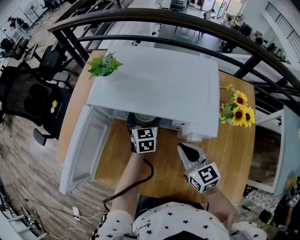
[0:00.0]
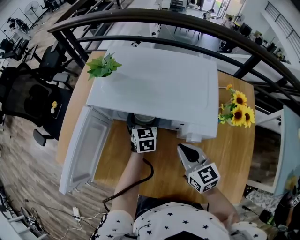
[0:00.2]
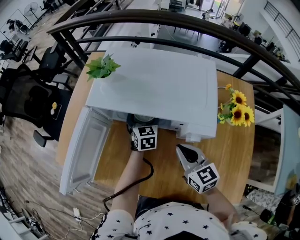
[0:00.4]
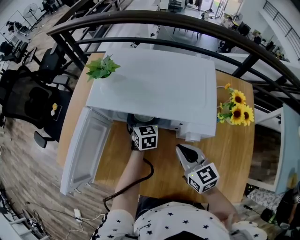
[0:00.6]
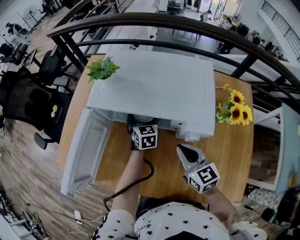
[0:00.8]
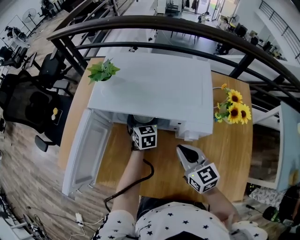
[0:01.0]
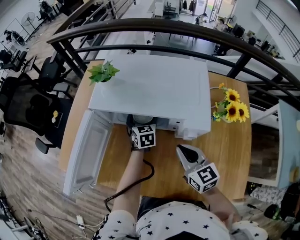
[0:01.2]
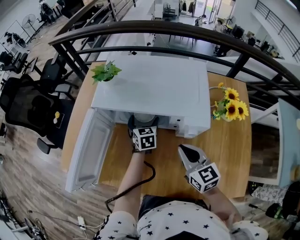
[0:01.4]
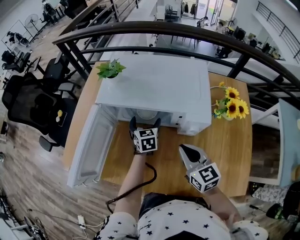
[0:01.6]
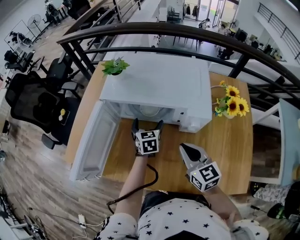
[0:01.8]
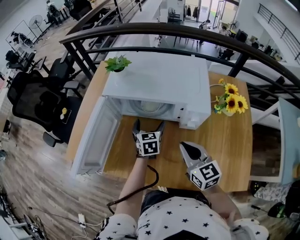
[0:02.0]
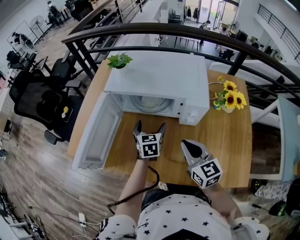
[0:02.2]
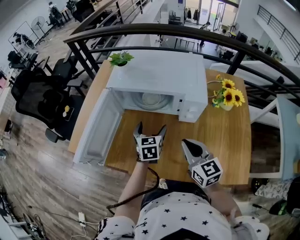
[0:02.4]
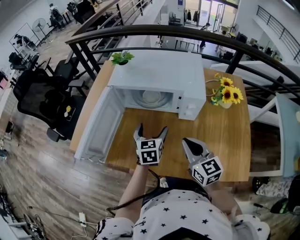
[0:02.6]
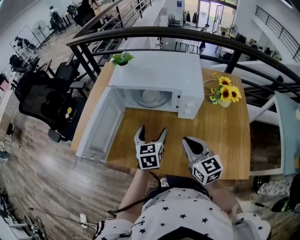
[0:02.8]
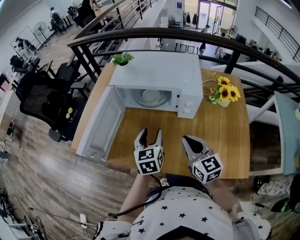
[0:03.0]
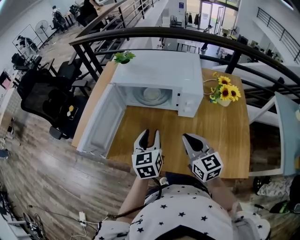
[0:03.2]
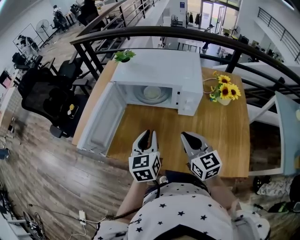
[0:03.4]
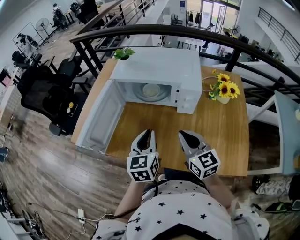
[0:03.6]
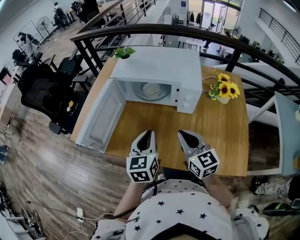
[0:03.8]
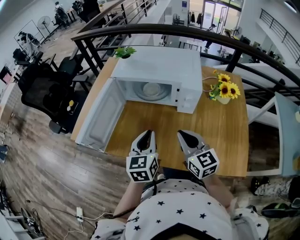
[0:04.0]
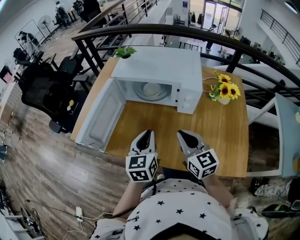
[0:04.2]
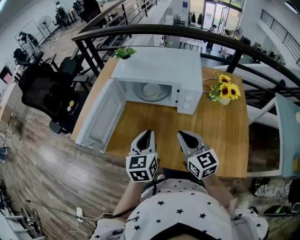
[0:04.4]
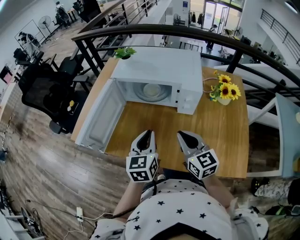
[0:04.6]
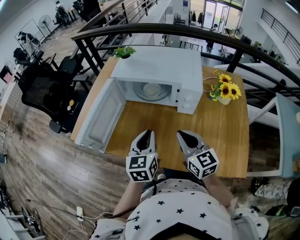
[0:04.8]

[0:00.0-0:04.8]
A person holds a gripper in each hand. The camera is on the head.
0:00.0 to 0:01.6: The right gripper shifts by about 5 cm.
0:01.6 to 0:03.2: The left gripper is displaced backward and upward by roughly 25 cm, and closes up. Meanwhile the right gripper travels backward by some 10 cm.
0:03.2 to 0:04.8: The grippers move only a little.

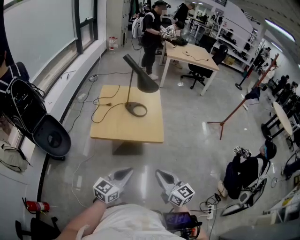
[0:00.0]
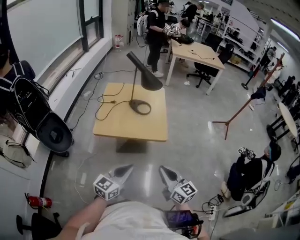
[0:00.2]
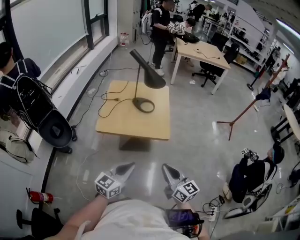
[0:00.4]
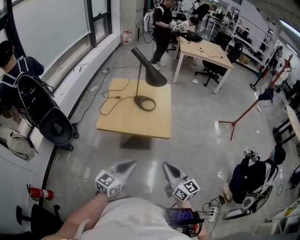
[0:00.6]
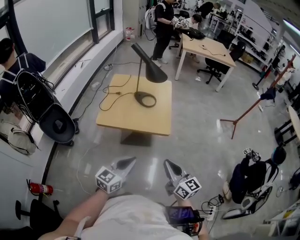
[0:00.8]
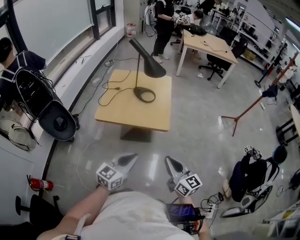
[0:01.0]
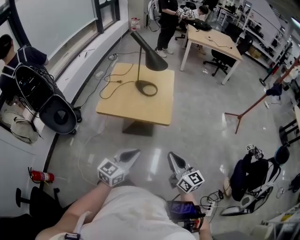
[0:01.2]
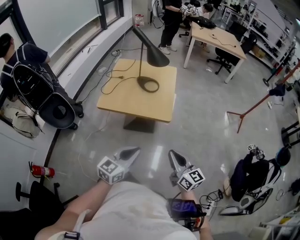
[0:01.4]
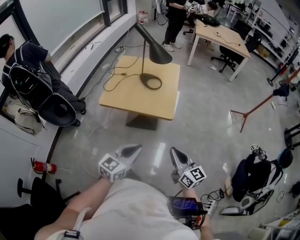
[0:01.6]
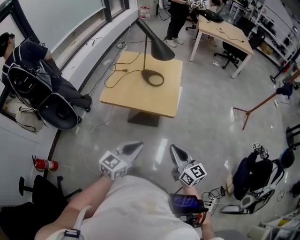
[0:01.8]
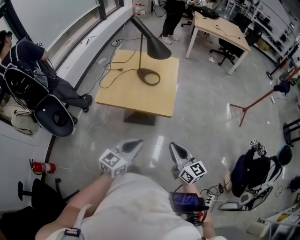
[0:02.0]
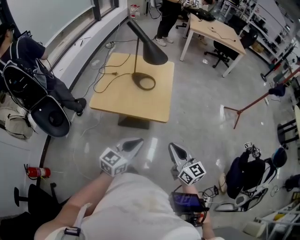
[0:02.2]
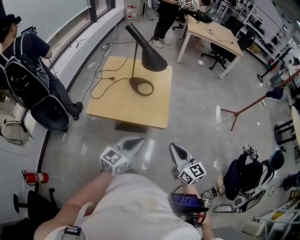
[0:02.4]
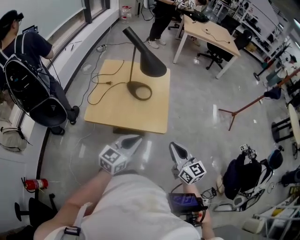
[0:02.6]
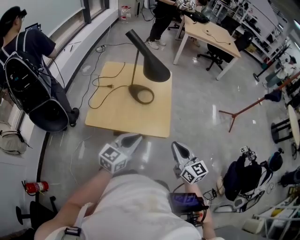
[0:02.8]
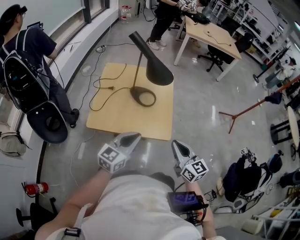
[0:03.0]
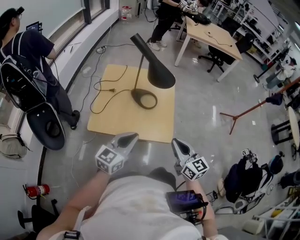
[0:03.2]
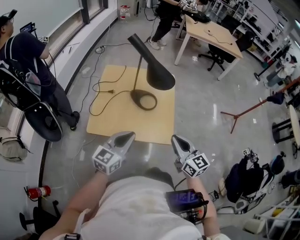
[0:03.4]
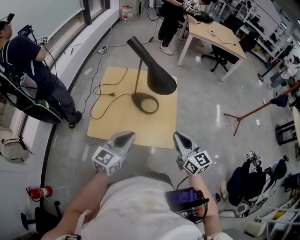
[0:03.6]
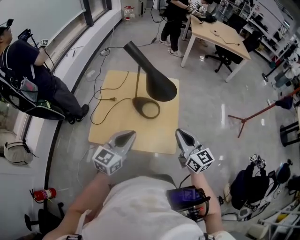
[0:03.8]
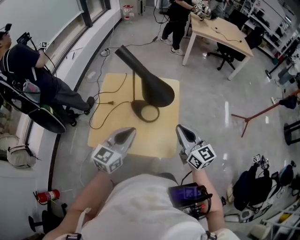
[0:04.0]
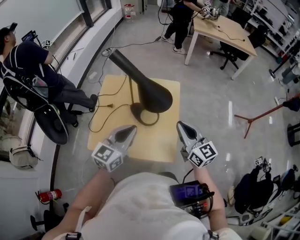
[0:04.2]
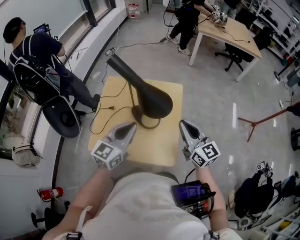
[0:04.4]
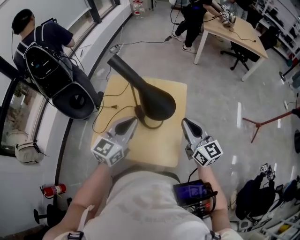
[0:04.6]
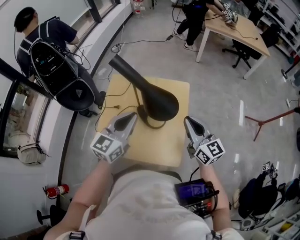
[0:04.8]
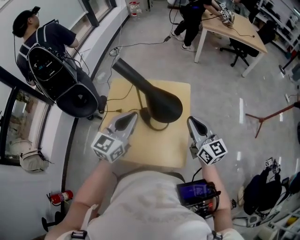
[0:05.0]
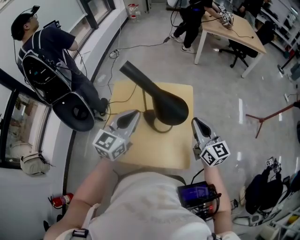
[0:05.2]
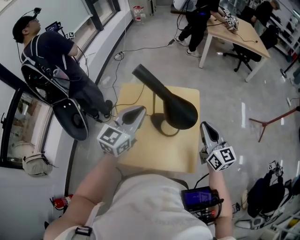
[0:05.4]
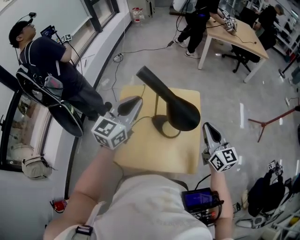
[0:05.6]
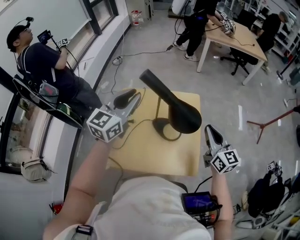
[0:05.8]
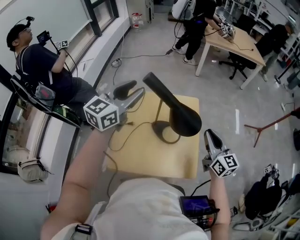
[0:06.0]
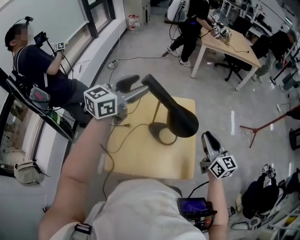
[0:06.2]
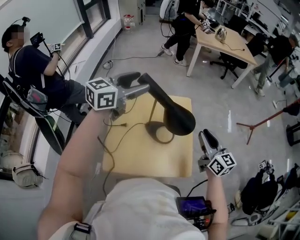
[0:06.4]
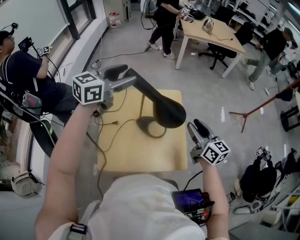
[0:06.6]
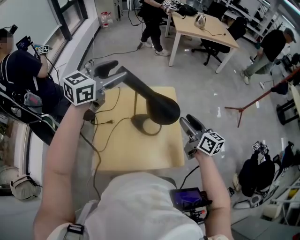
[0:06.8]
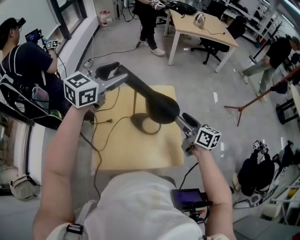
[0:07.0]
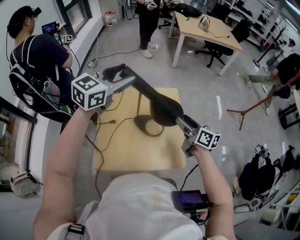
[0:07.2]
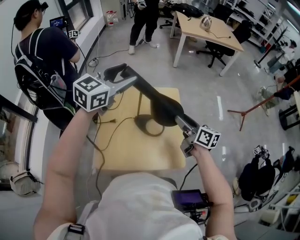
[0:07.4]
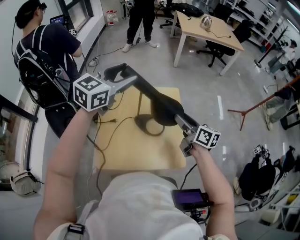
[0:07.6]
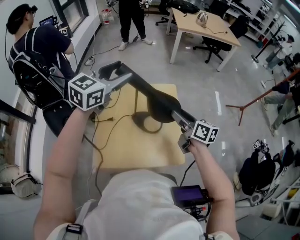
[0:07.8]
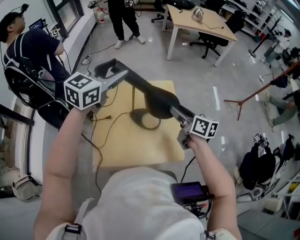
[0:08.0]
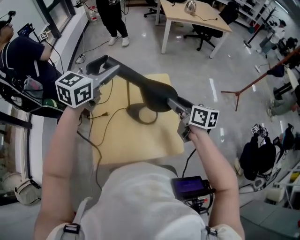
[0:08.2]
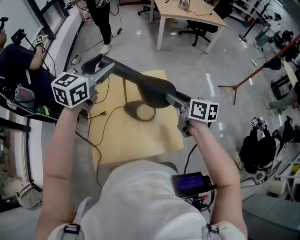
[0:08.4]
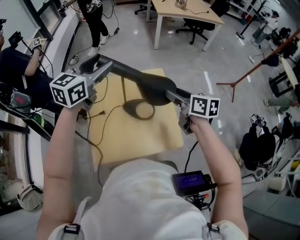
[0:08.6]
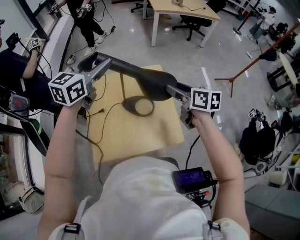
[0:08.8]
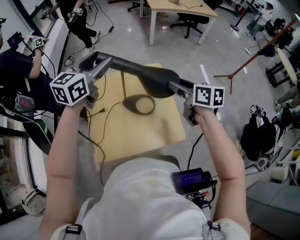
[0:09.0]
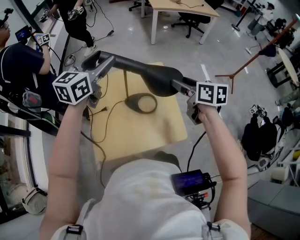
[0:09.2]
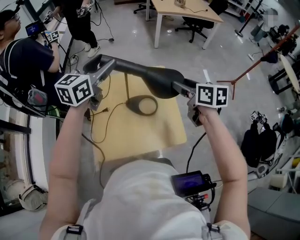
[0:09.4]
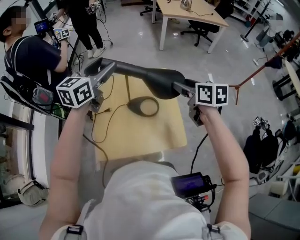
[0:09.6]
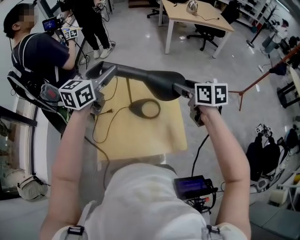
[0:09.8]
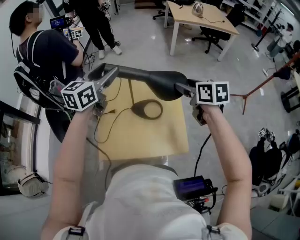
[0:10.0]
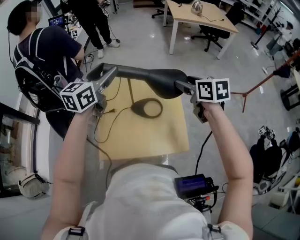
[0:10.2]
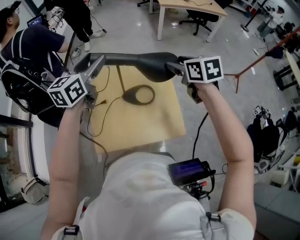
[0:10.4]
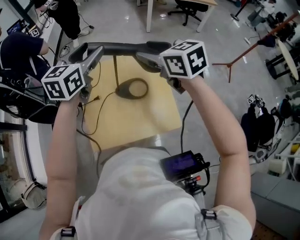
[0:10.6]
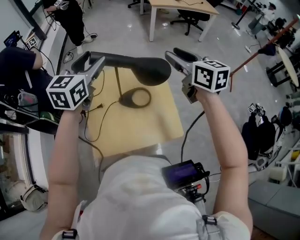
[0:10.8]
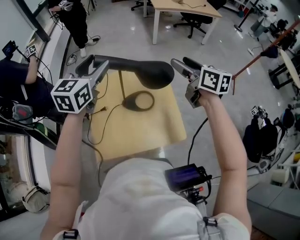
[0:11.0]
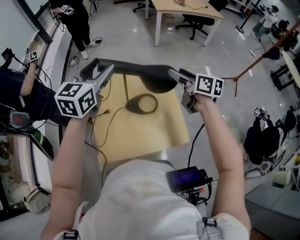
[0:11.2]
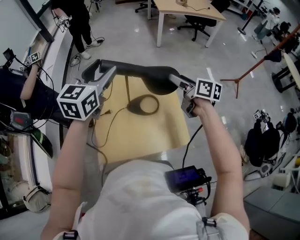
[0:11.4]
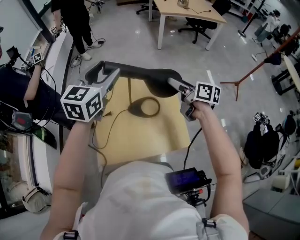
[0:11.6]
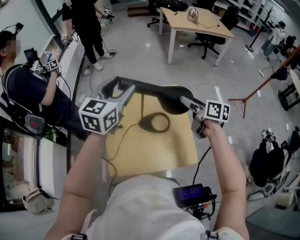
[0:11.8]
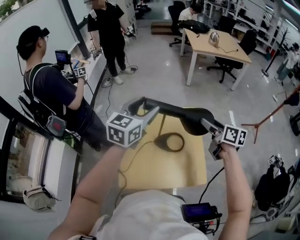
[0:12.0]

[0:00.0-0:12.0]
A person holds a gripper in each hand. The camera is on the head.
0:00.0 to 0:01.6: Both grippers move to the right, roughly 10 cm.
0:01.6 to 0:03.0: Both grippers move forward, some 20 cm.
0:03.0 to 0:04.4: The two grippers go roughly 25 cm forward.
0:04.4 to 0:06.0: The left gripper is displaced forward, upward and to the left by about 25 cm, and opens up.
0:06.0 to 0:07.6: The left gripper ends up roughly 5 cm from where it was, while the right gripper ends up approximately 5 cm from where it was, turns by roughly 30 degrees, and opens.
0:07.6 to 0:09.0: The grippers stay close to where they were, moving slightly.
0:09.0 to 0:10.4: The right gripper is displaced upward by approximately 5 cm.
0:10.4 to 0:12.0: The right gripper travels downward by some 5 cm, and turns by approximately 30 degrees.

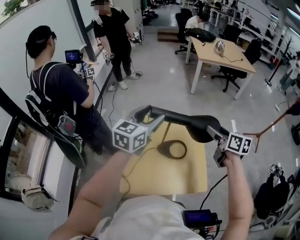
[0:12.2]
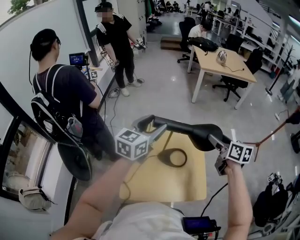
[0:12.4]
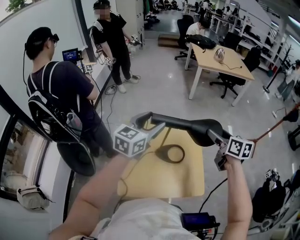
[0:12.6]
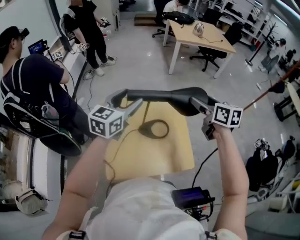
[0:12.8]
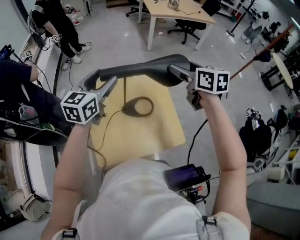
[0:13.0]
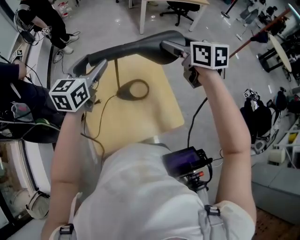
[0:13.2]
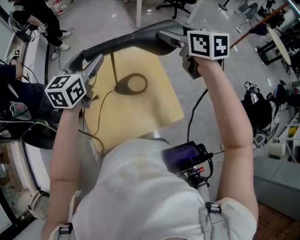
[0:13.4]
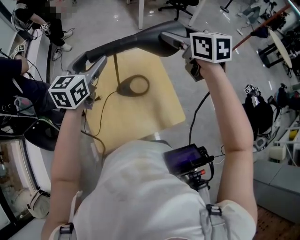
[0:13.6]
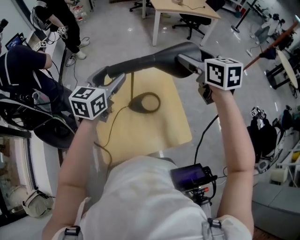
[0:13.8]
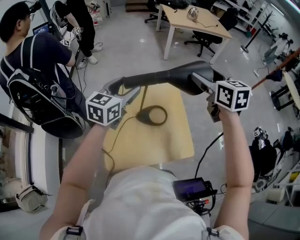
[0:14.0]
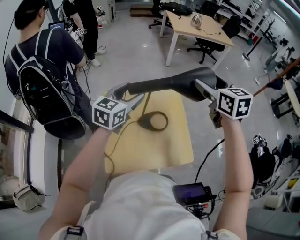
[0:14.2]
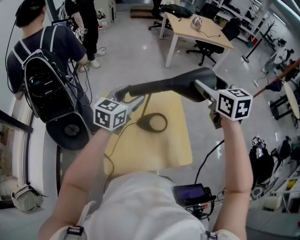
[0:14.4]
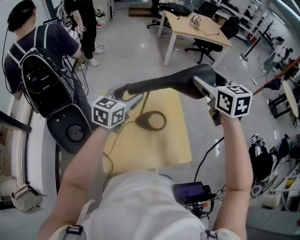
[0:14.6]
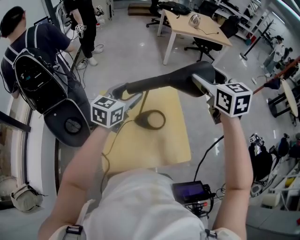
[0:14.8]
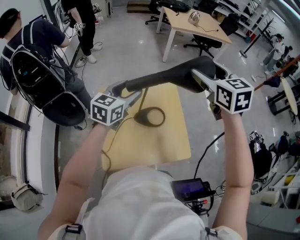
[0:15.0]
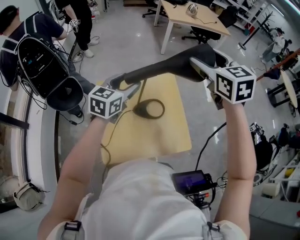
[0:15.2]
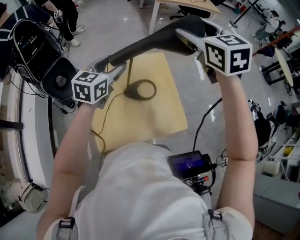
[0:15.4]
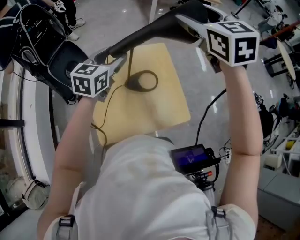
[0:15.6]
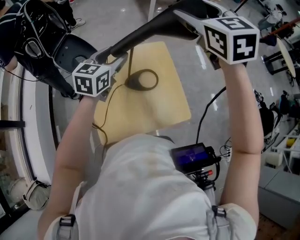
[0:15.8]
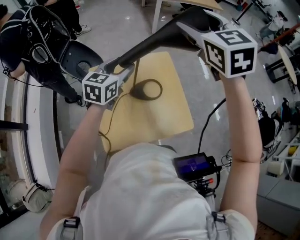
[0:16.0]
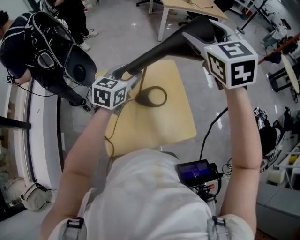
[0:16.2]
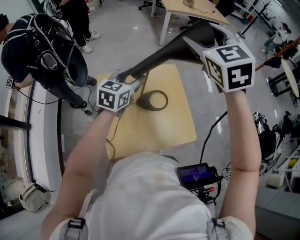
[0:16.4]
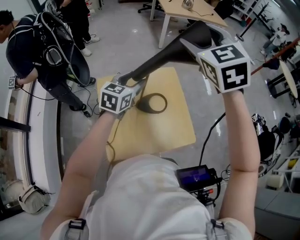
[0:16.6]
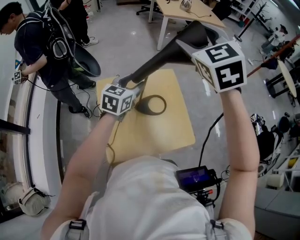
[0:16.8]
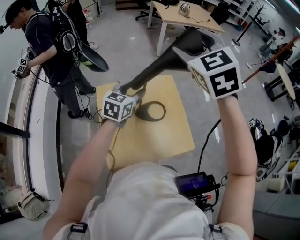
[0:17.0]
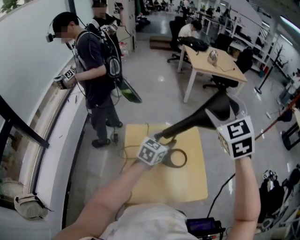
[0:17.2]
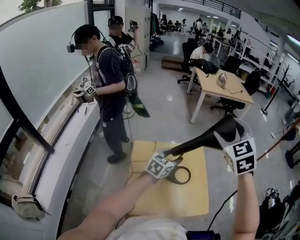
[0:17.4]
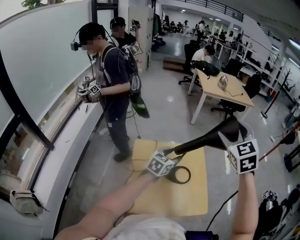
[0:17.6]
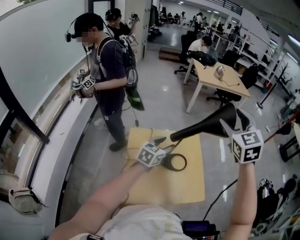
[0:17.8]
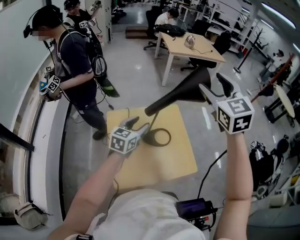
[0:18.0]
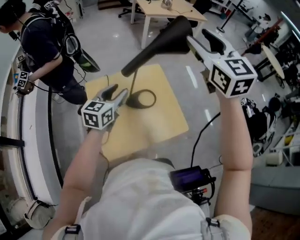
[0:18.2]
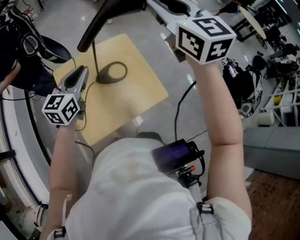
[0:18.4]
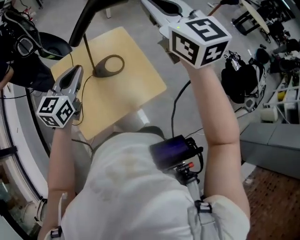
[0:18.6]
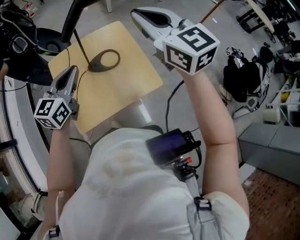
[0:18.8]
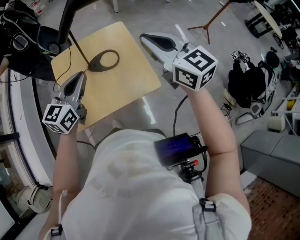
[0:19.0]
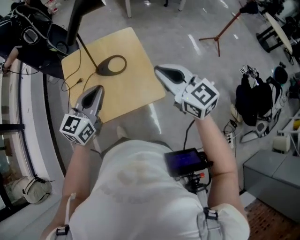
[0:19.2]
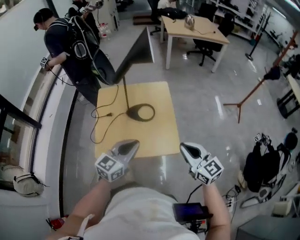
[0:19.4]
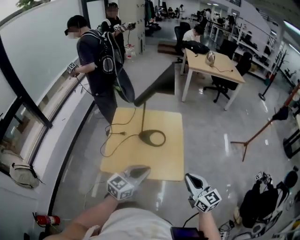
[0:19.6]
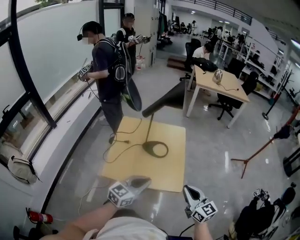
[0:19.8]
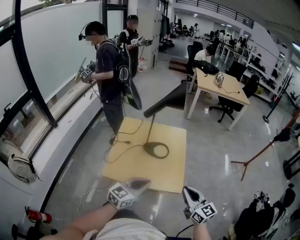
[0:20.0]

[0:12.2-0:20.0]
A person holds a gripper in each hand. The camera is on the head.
0:12.2 to 0:13.8: The right gripper is displaced upward by approximately 10 cm, and swivels some 30 degrees.
0:13.8 to 0:15.4: The right gripper travels upward and to the left by roughly 10 cm, and swivels roughly 20 degrees.
0:15.4 to 0:16.8: The right gripper moves approximately 5 cm. The left gripper moves roughly 5 cm.
0:16.8 to 0:18.4: The right gripper travels backward by some 5 cm, swivels roughly 30 degrees, and closes its fingers; the left gripper shifts approximately 10 cm backward and upward, and closes its fingers.
0:18.4 to 0:20.0: The left gripper heads backward and to the right, covering about 35 cm; the right gripper is displaced downward, backward and to the right by approximately 40 cm, and turns by about 40 degrees.
